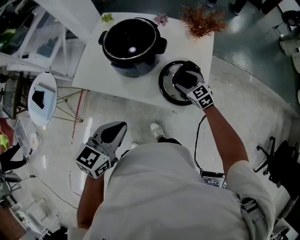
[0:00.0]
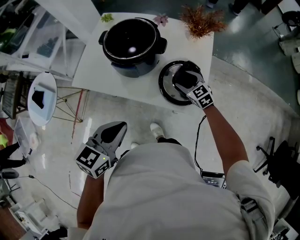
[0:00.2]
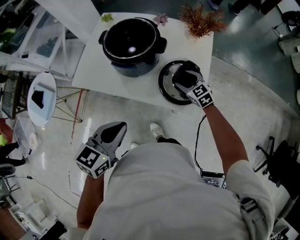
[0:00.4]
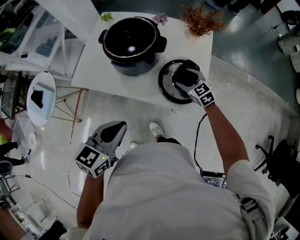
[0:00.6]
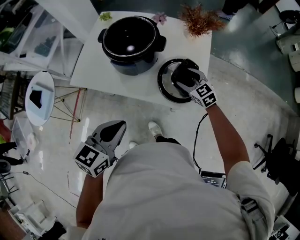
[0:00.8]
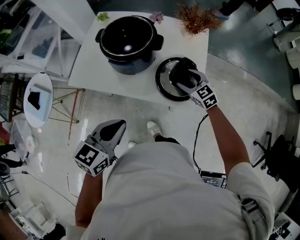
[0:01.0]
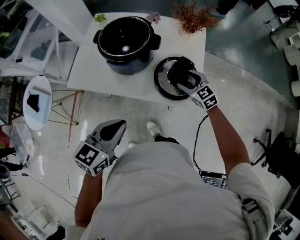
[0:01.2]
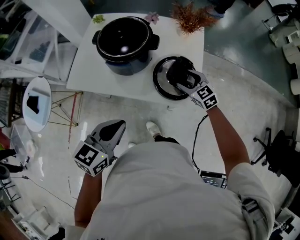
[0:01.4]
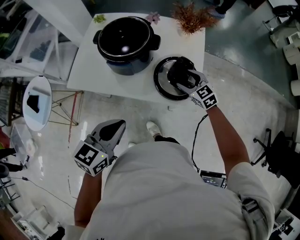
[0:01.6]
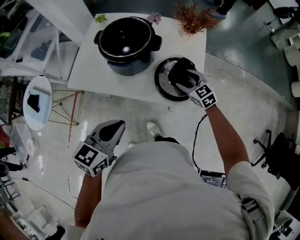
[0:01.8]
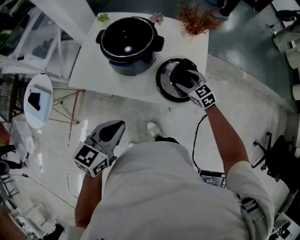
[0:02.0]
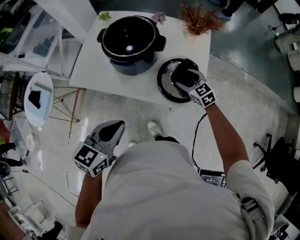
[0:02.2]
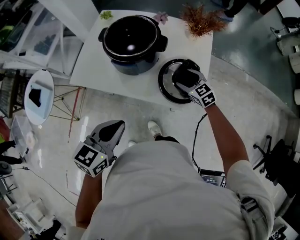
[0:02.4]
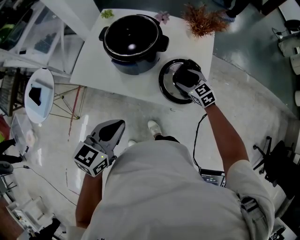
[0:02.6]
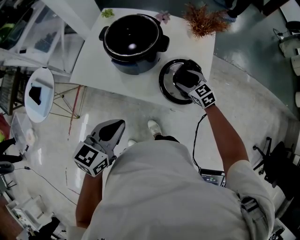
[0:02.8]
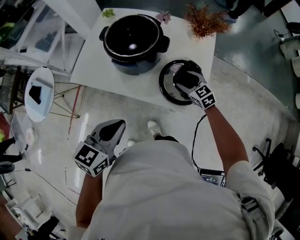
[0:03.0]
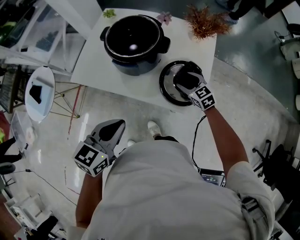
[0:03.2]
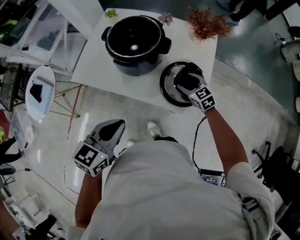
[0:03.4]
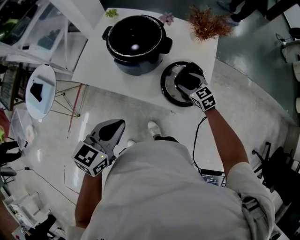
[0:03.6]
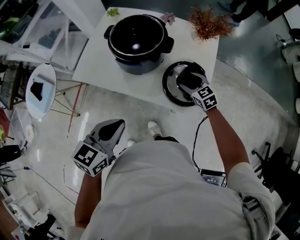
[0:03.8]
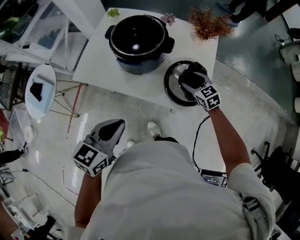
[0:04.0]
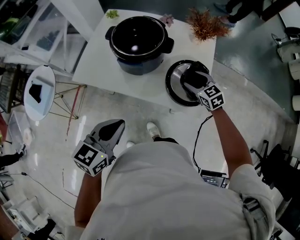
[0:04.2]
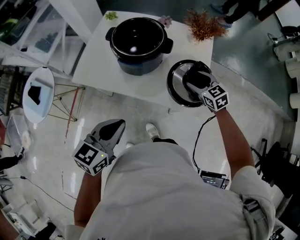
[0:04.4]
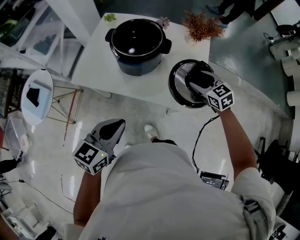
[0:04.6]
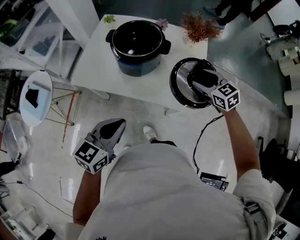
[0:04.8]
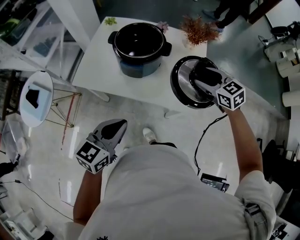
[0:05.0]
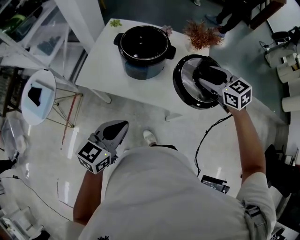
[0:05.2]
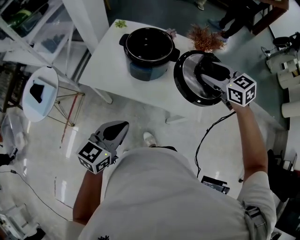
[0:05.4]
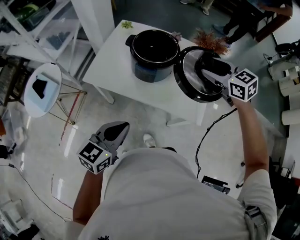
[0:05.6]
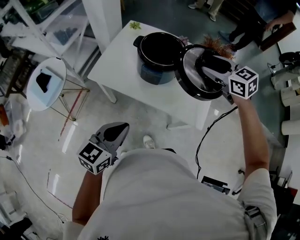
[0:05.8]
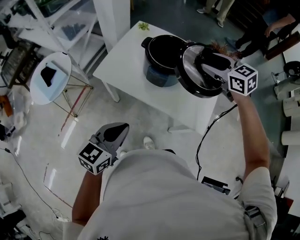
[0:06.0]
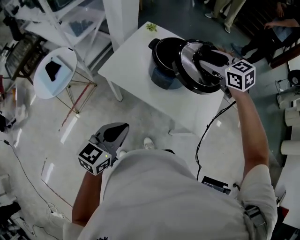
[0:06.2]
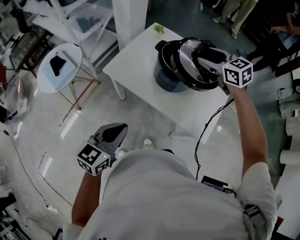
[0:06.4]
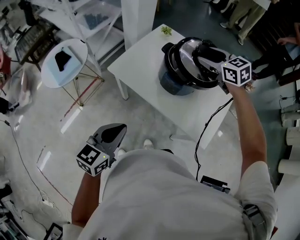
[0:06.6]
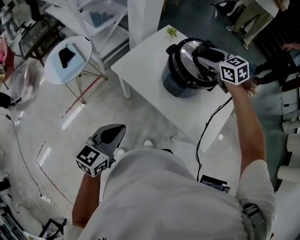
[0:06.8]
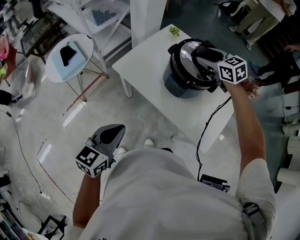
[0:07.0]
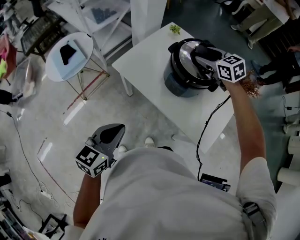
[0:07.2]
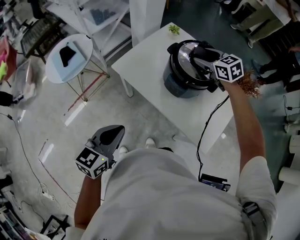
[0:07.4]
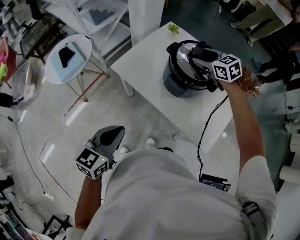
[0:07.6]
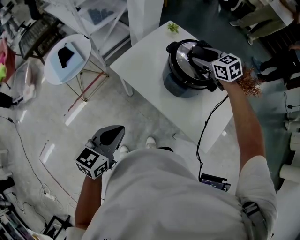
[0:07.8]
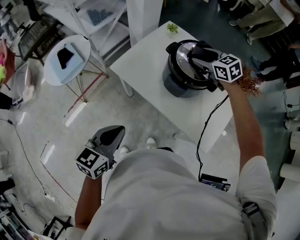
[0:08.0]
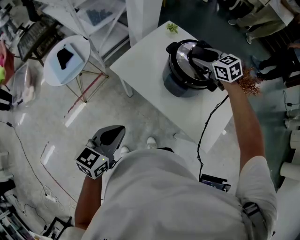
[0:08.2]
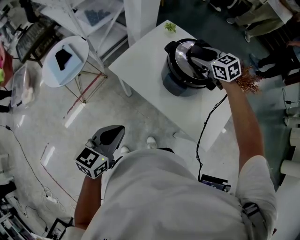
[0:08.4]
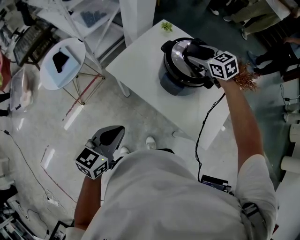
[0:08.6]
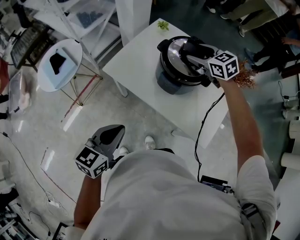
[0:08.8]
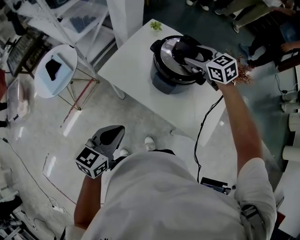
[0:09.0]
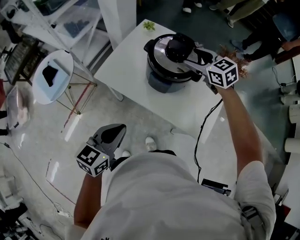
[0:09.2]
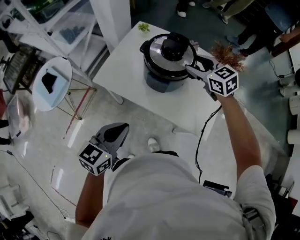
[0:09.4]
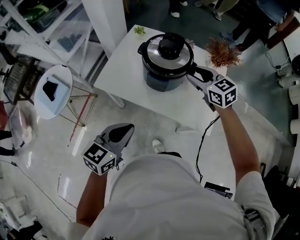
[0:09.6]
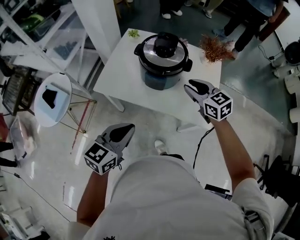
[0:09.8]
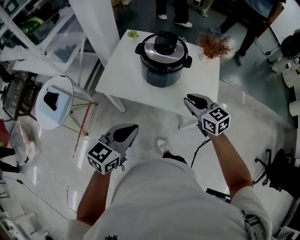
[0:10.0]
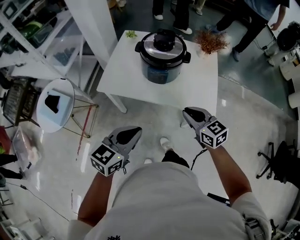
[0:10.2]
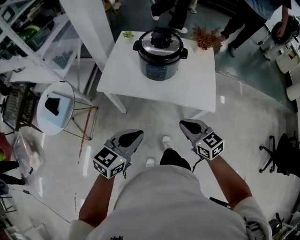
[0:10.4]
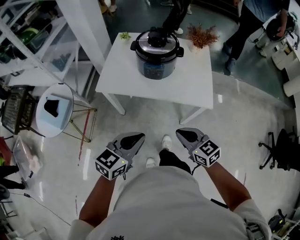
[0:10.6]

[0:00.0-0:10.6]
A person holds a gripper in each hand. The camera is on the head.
0:00.0 to 0:01.6: The right gripper ends up some 5 cm from where it was.
0:01.6 to 0:03.0: The right gripper changes place by approximately 5 cm.
0:03.0 to 0:04.6: The right gripper travels upward by about 10 cm.
0:04.6 to 0:06.0: The right gripper heads upward and to the left, covering some 25 cm; the left gripper moves to the left, some 5 cm.
0:06.0 to 0:07.6: The right gripper goes about 20 cm forward, to the left and downward. The left gripper goes roughly 5 cm to the left.
0:07.6 to 0:09.0: There are only small adjustments of the grippers.
0:09.0 to 0:10.6: The right gripper shifts some 50 cm backward, turns by about 30 degrees, and closes up. The left gripper heads backward, covering about 10 cm, and turns by approximately 30 degrees.

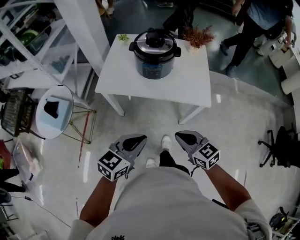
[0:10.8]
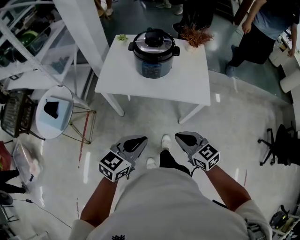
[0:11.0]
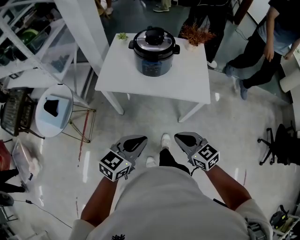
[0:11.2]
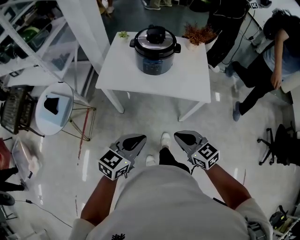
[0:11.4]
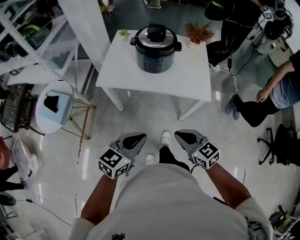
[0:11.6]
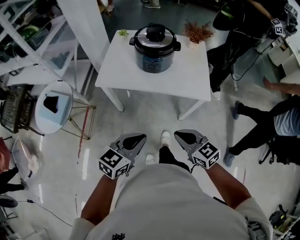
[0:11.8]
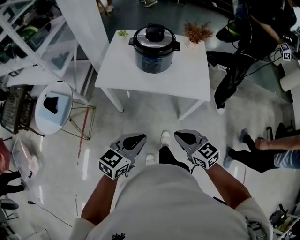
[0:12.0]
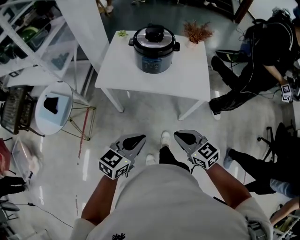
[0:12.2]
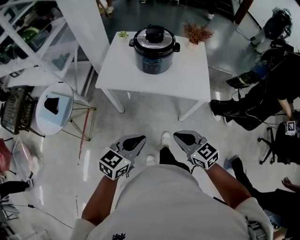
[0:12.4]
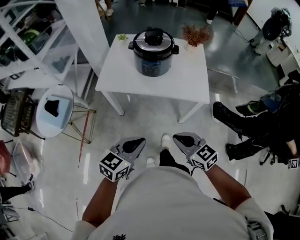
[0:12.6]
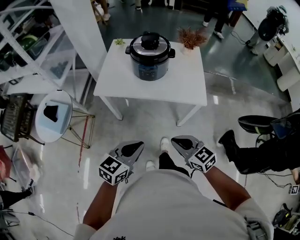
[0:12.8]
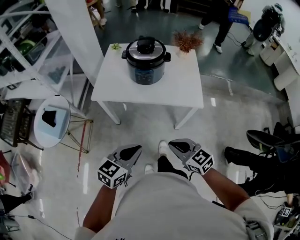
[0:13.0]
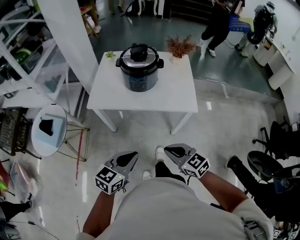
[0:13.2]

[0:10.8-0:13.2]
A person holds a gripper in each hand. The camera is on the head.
0:10.8 to 0:13.2: The grippers move only a little.

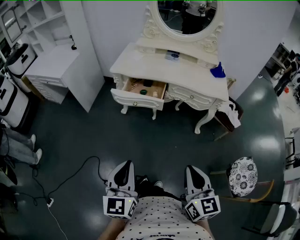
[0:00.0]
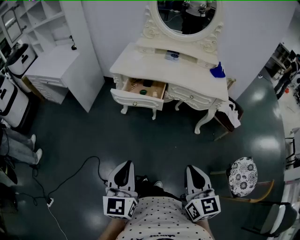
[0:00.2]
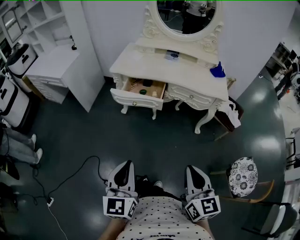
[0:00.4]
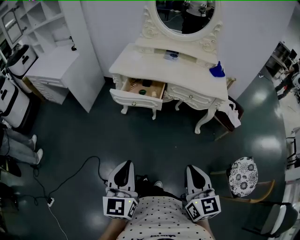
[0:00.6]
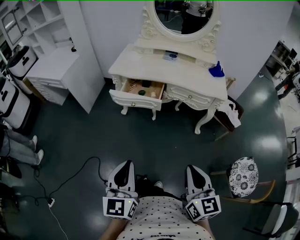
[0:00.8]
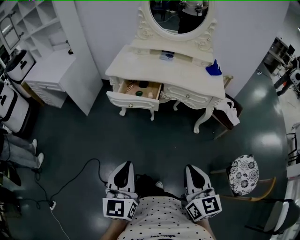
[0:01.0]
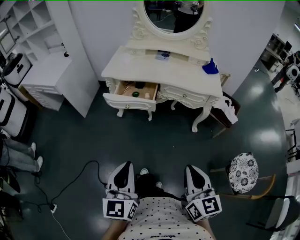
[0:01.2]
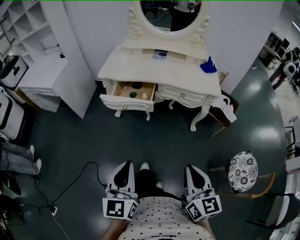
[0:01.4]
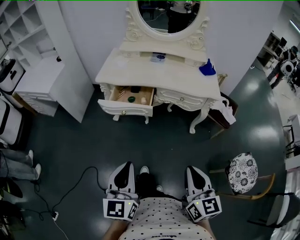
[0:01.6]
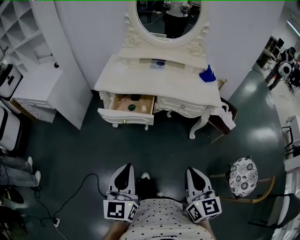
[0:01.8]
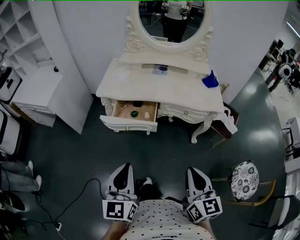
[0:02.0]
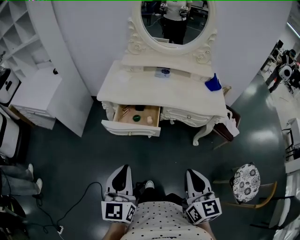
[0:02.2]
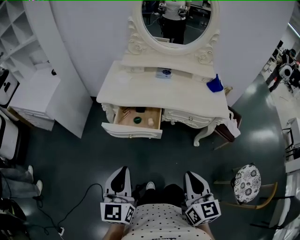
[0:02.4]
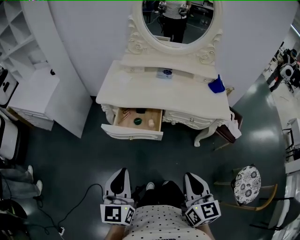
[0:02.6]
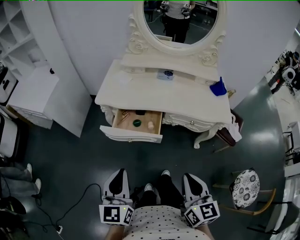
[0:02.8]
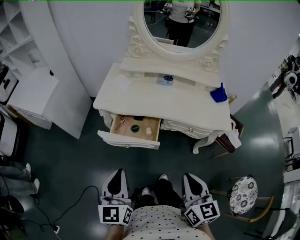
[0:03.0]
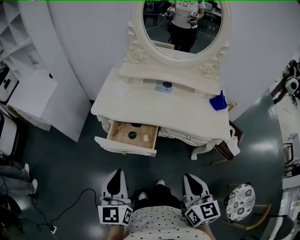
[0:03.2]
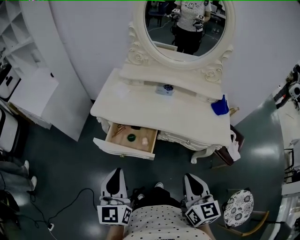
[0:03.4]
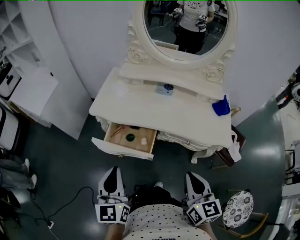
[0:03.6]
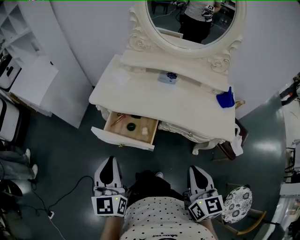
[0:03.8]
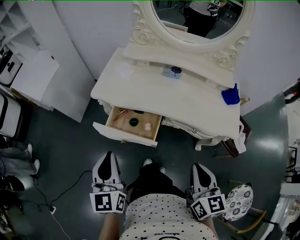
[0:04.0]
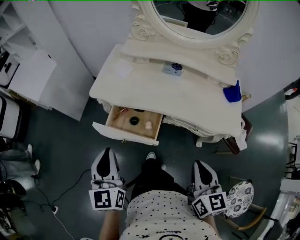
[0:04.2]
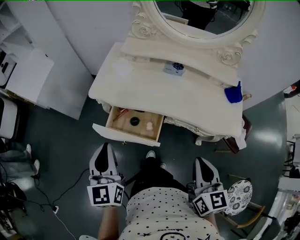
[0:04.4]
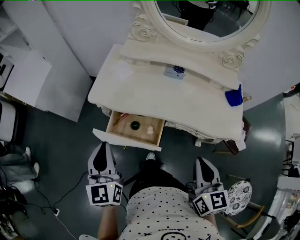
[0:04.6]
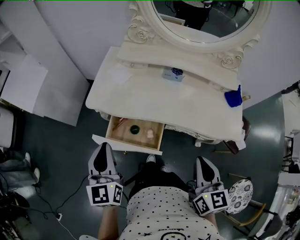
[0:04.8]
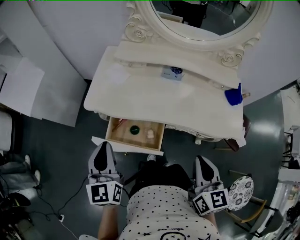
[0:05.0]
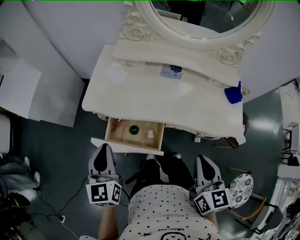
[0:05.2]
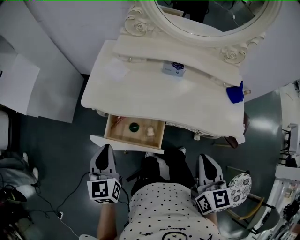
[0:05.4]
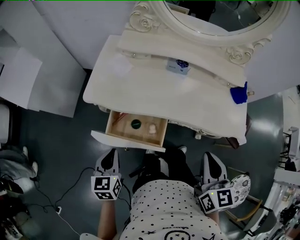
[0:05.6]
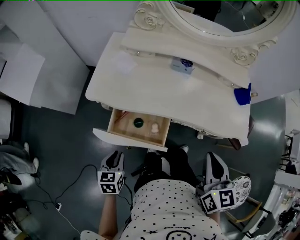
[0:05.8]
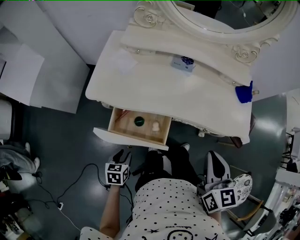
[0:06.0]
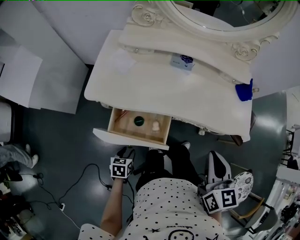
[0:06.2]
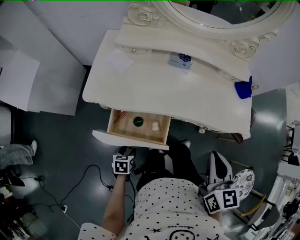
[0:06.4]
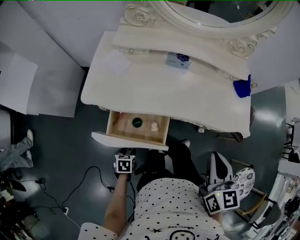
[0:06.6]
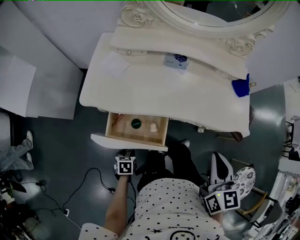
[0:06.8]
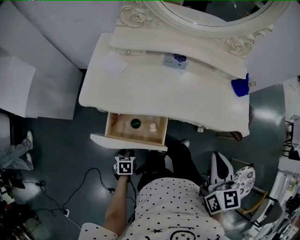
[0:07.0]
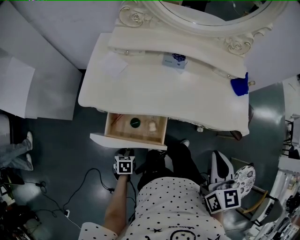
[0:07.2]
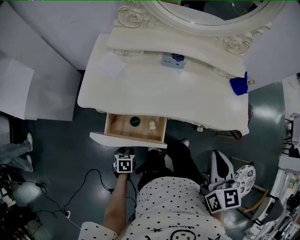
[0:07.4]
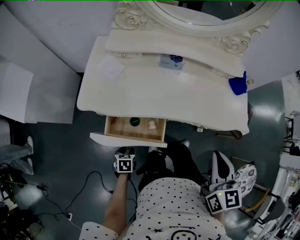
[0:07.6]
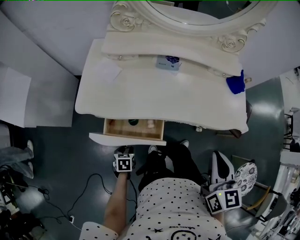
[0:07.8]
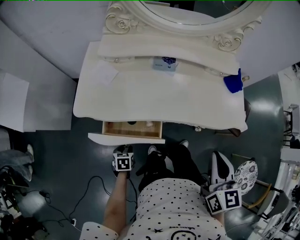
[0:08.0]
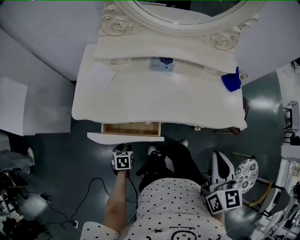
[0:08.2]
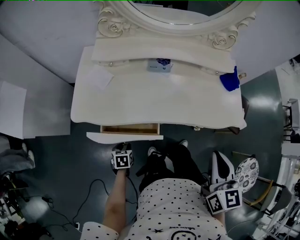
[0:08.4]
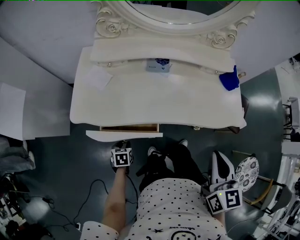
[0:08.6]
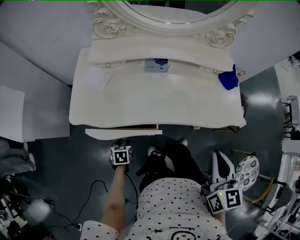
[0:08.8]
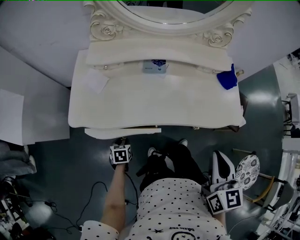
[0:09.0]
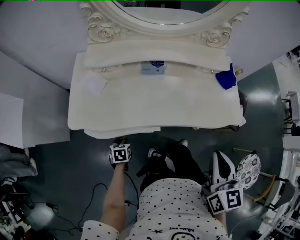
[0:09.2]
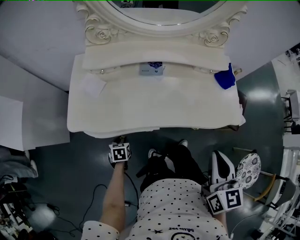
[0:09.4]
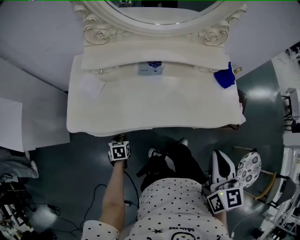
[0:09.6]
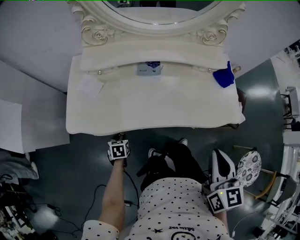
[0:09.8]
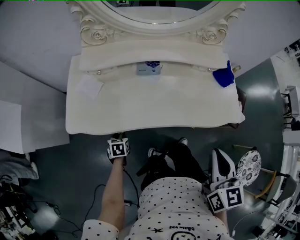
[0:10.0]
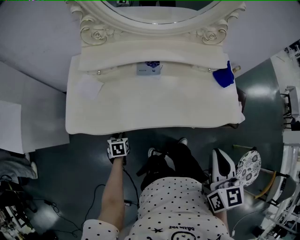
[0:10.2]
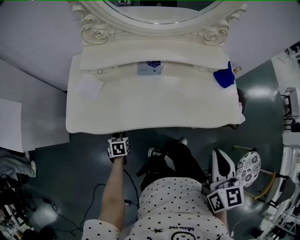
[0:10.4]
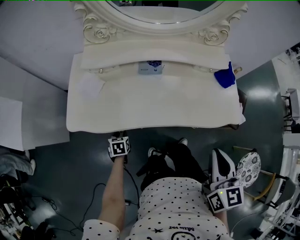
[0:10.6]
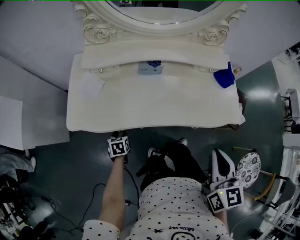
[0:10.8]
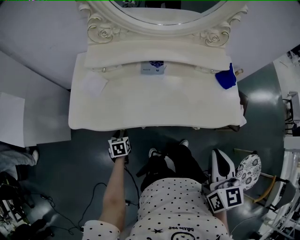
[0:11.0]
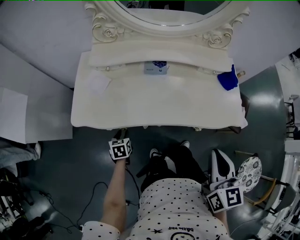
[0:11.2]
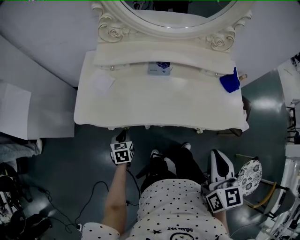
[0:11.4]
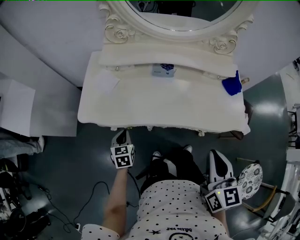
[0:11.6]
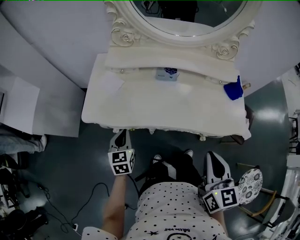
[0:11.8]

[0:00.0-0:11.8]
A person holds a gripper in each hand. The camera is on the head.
0:00.0 to 0:01.4: The left gripper changes place by roughly 5 cm.
0:01.4 to 0:03.0: Both grippers travel together forward, about 25 cm.
0:03.0 to 0:04.4: The left gripper moves forward, about 15 cm, while the right gripper shifts about 15 cm forward and to the right.
0:04.4 to 0:06.0: The right gripper goes about 10 cm forward. Meanwhile the left gripper shifts roughly 30 cm downward, angles its fingers downward, by about 40 degrees, and opens up.
0:06.0 to 0:07.4: The left gripper moves downward, about 10 cm.
0:07.4 to 0:08.8: The left gripper moves forward, roughly 10 cm.
0:08.8 to 0:10.4: The left gripper shifts approximately 5 cm forward.
0:10.4 to 0:11.8: The left gripper travels upward by about 20 cm, changes its angle by about 30 degrees, and closes.
